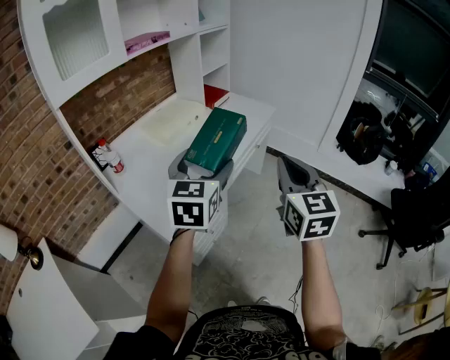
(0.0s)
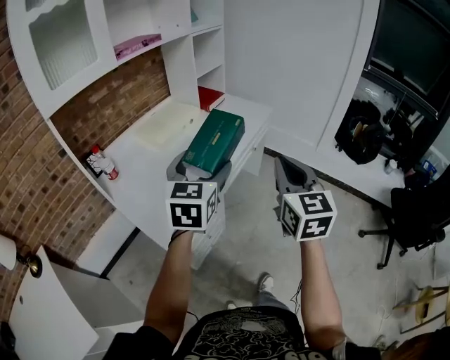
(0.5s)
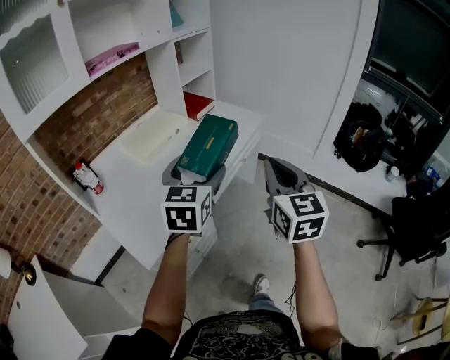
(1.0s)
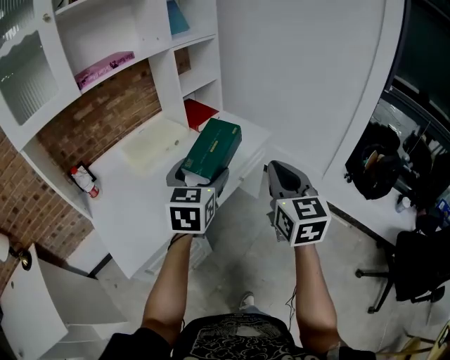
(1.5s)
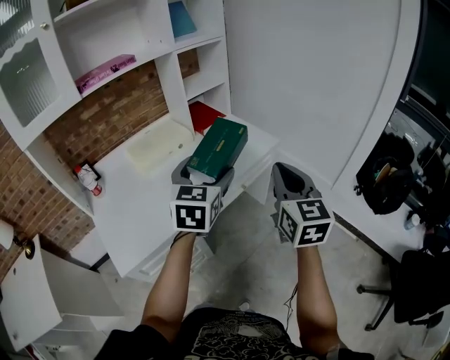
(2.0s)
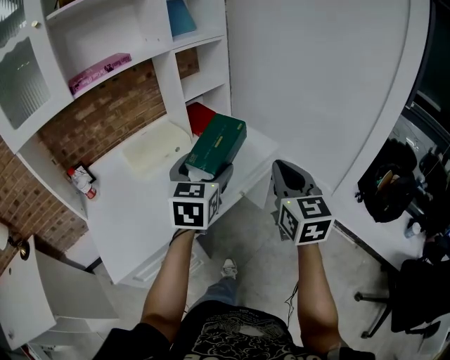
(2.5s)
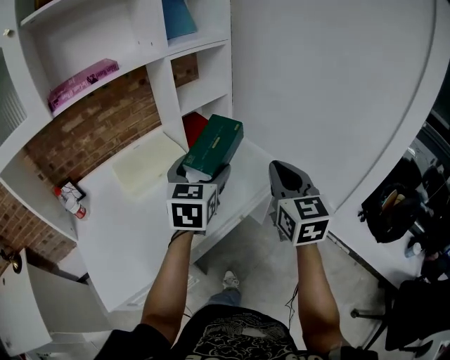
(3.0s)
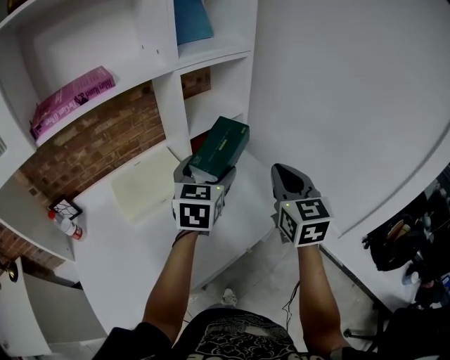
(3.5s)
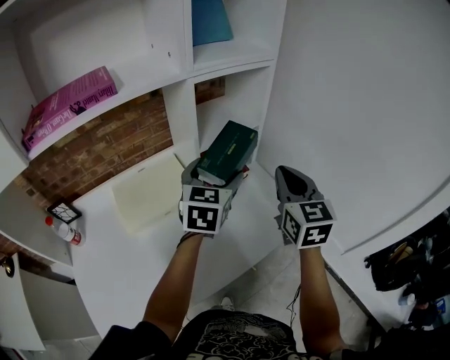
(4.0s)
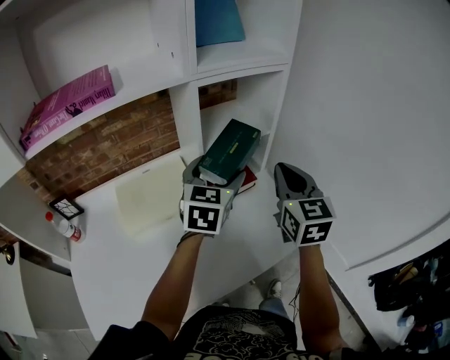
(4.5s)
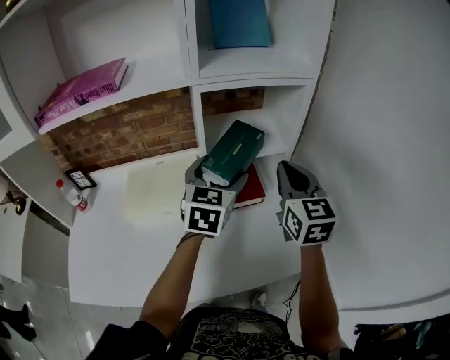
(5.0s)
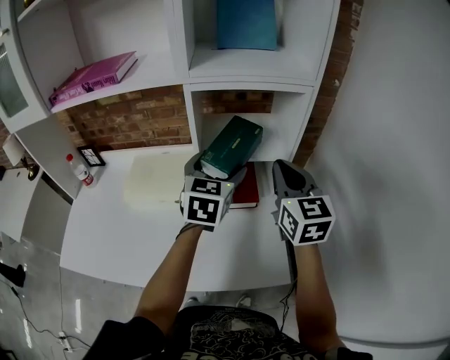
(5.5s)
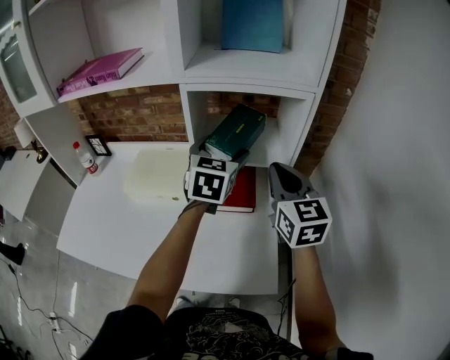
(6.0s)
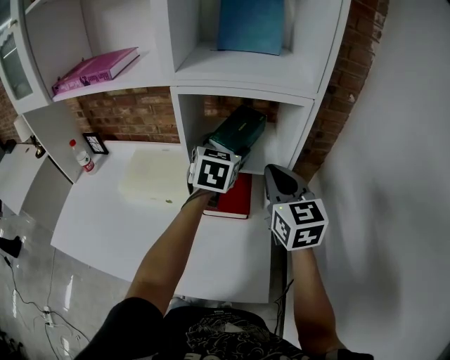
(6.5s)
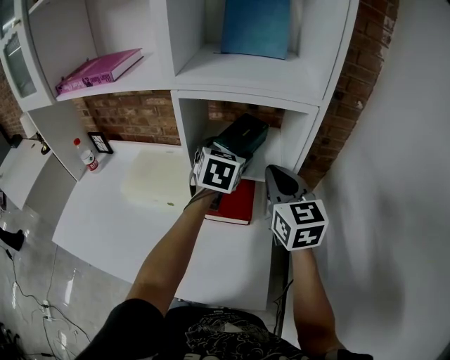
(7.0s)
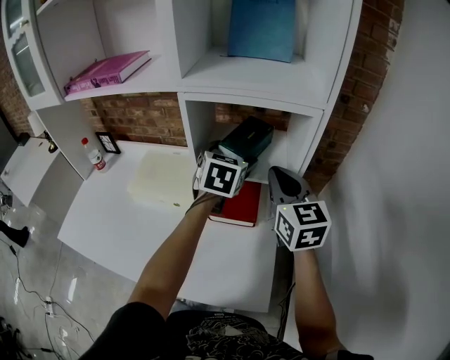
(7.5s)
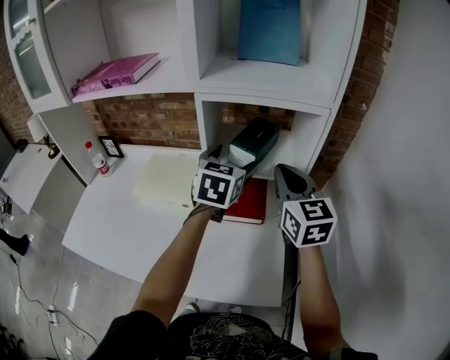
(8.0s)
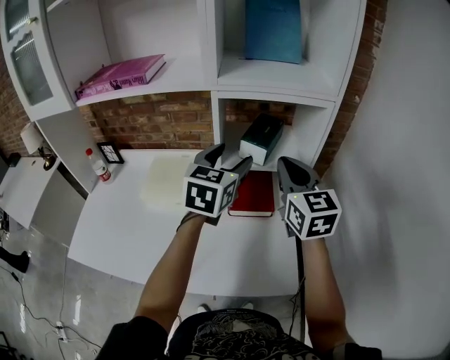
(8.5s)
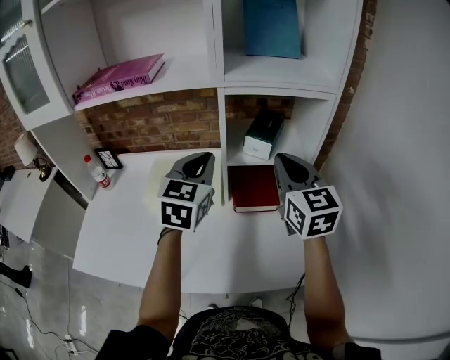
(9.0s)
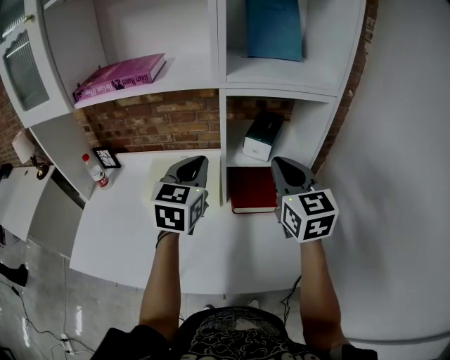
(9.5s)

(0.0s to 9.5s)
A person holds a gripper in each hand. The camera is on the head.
0.0s - 2.0s: Both grippers travel together forward and to the right, some 30 cm.
2.0s - 4.0s: The two grippers travel together, forward, approximately 40 cm.
4.0s - 5.5s: The left gripper moves some 10 cm, and rotates about 30 degrees; the right gripper shifts by roughly 15 cm, and rotates roughly 30 degrees.
5.5s - 7.5s: The right gripper is displaced forward by roughly 5 cm; the left gripper goes approximately 10 cm forward.
7.5s - 9.5s: The left gripper travels to the left and backward by approximately 20 cm, and closes up; the right gripper shifts some 10 cm to the left and backward.

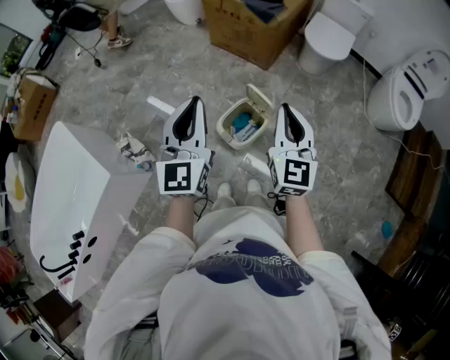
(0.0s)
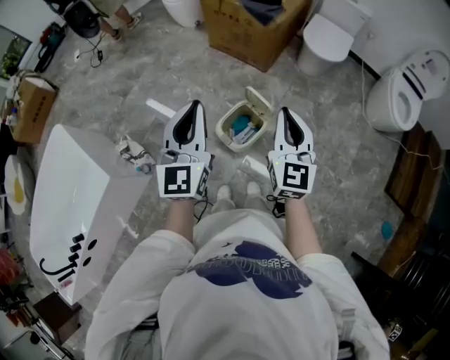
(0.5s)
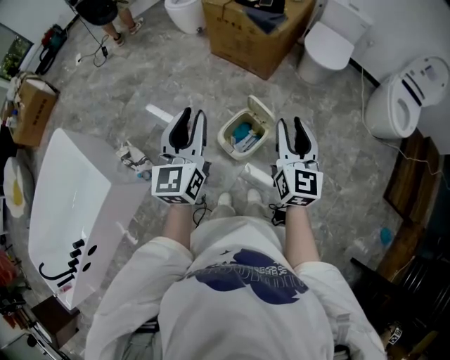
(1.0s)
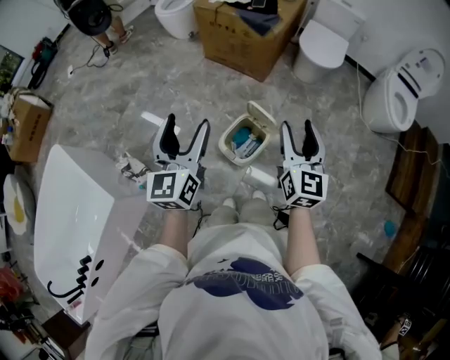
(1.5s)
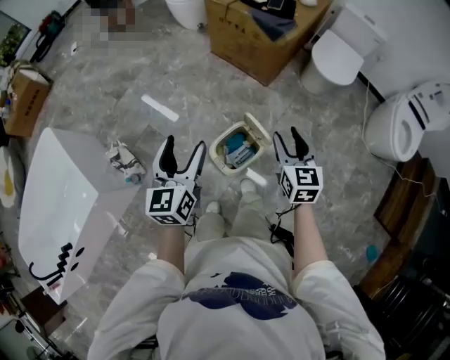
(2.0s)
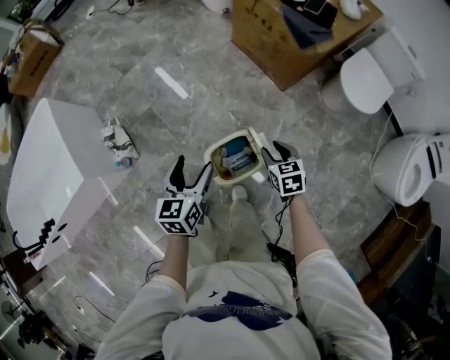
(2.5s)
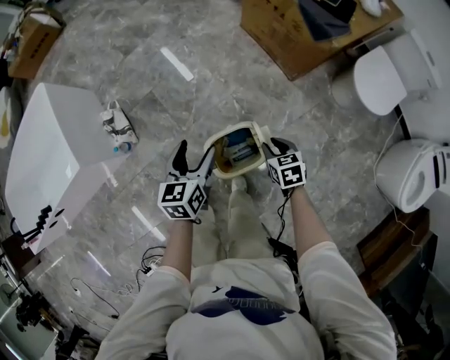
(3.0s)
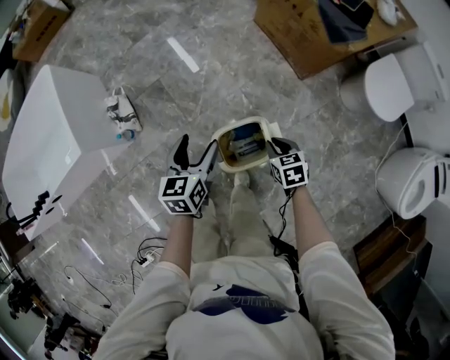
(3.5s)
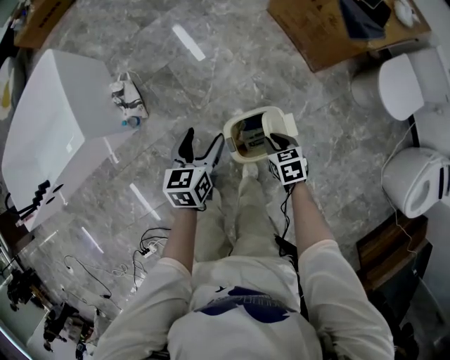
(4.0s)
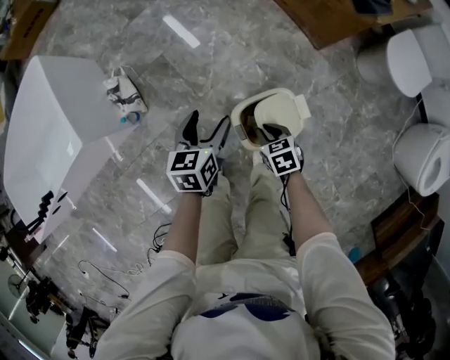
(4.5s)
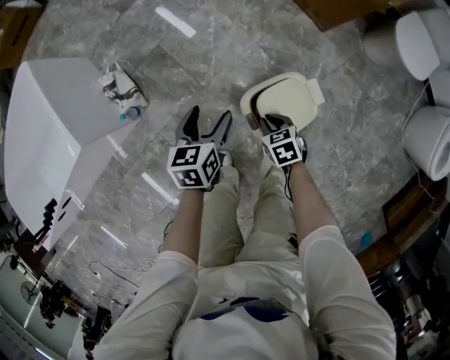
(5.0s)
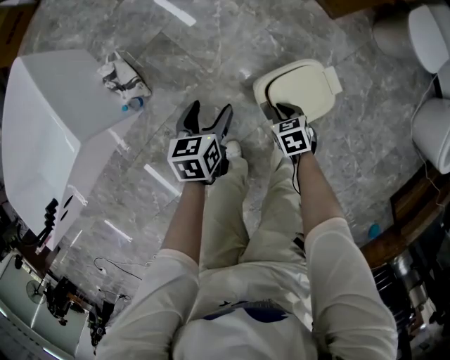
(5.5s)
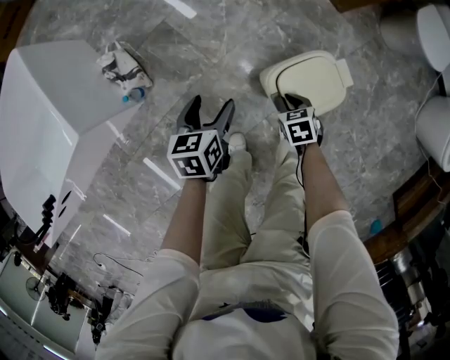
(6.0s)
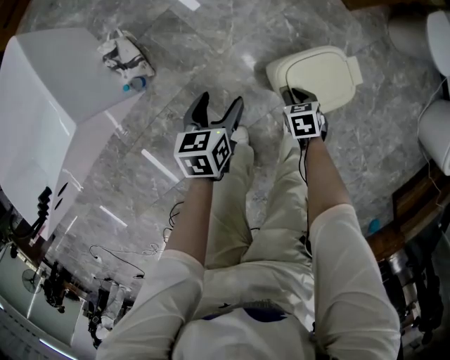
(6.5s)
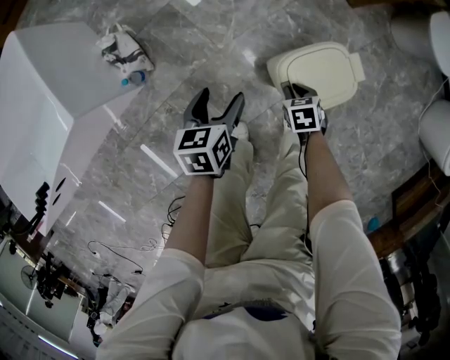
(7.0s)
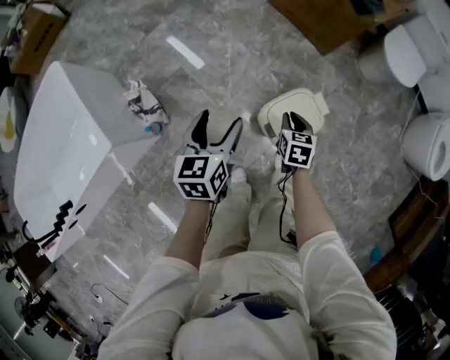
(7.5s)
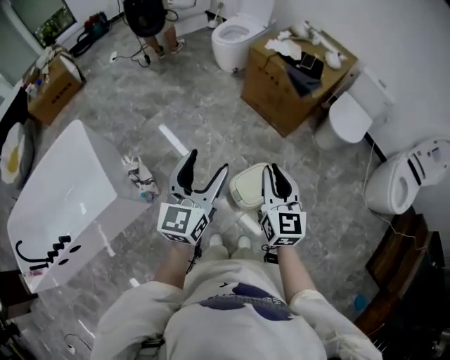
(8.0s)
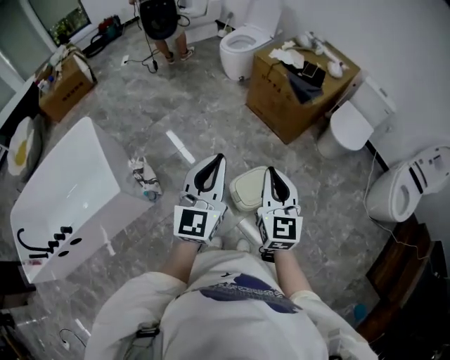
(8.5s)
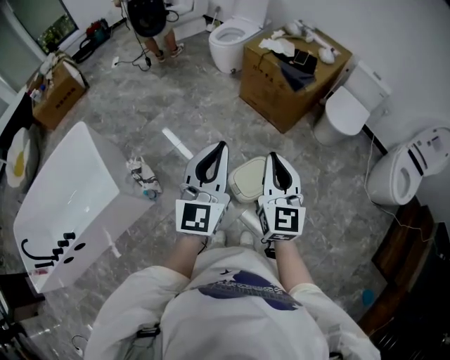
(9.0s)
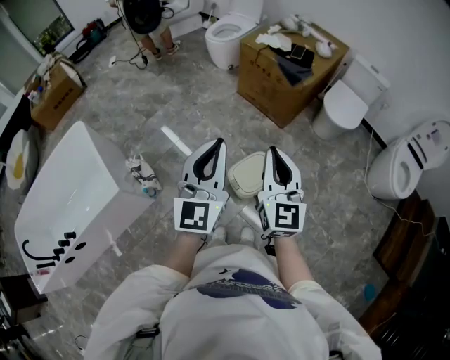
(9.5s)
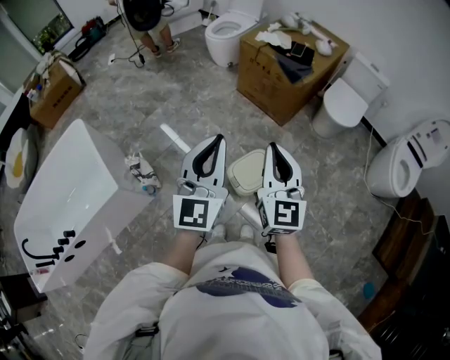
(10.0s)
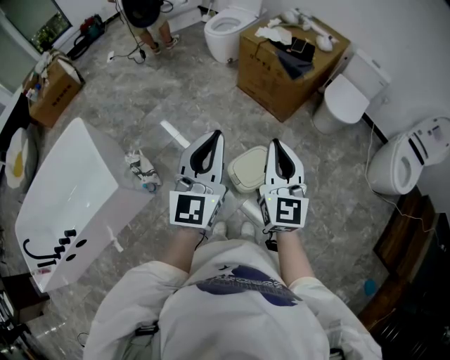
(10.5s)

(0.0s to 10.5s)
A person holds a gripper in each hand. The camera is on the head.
0.0s - 2.0s: The right gripper goes roughly 15 cm forward and downward, turns by some 20 degrees, and opens up. Meanwhile the left gripper shifts roughly 15 cm downward and forward, rotates some 30 degrees, and opens.
2.0s - 4.0s: The grippers both shift downward by approximately 25 cm. The left gripper rotates approximately 30 degrees. The right gripper tilts its fingers about 30 degrees downward, and closes up.
4.0s - 6.5s: Both grippers move downward and to the left, roughly 25 cm.
6.5s - 8.5s: The two grippers go about 60 cm upward. The left gripper points its fingers some 50 degrees further upward, and closes up, while the right gripper tips its fingers upward by about 70 degrees.
8.5s - 10.5s: The grippers make only small movements.

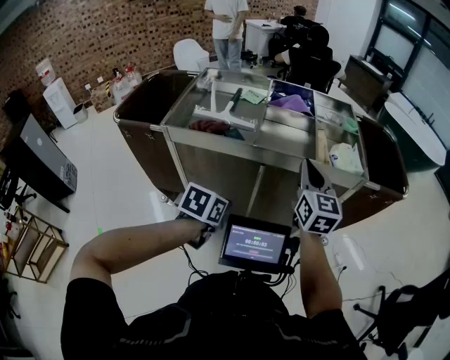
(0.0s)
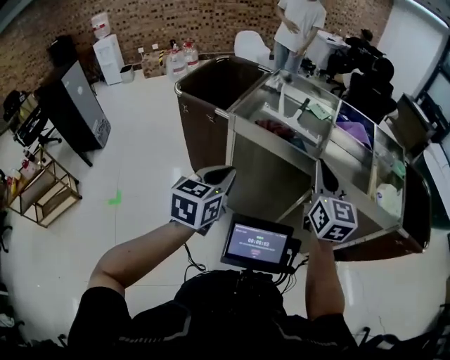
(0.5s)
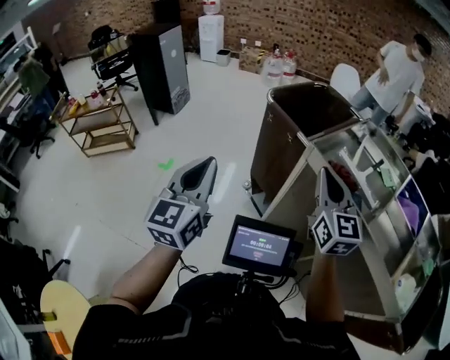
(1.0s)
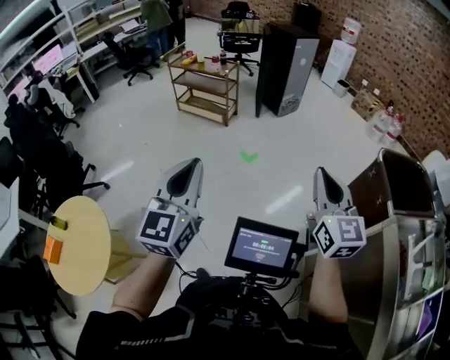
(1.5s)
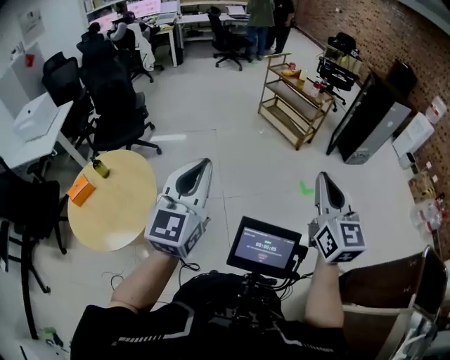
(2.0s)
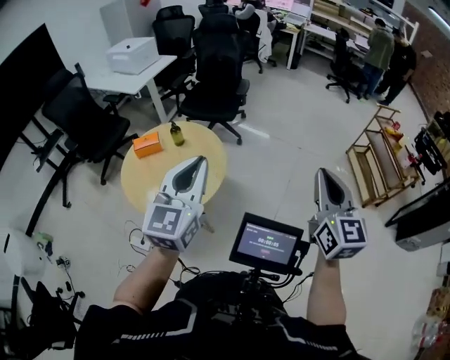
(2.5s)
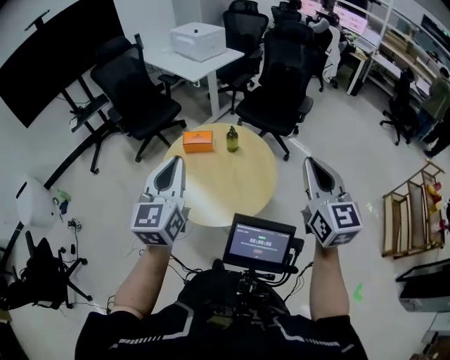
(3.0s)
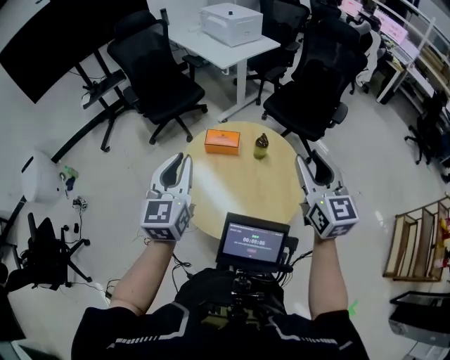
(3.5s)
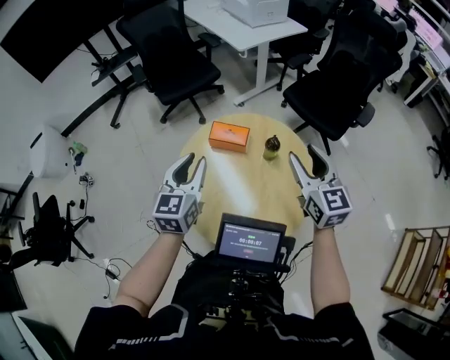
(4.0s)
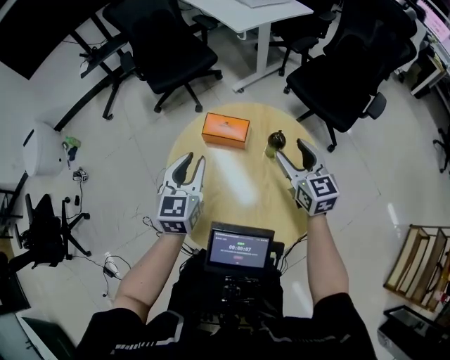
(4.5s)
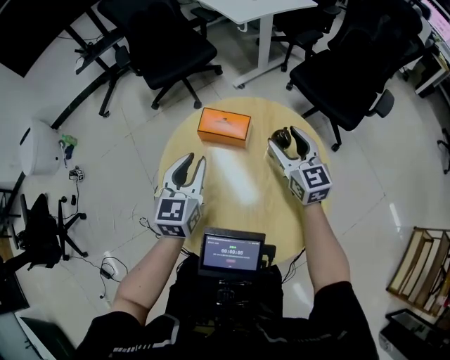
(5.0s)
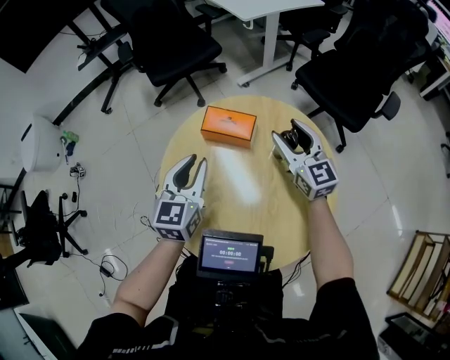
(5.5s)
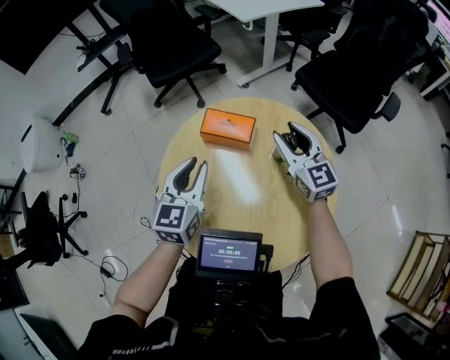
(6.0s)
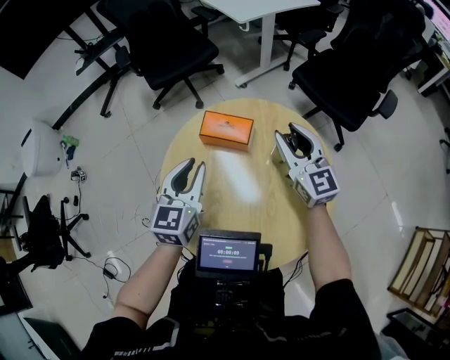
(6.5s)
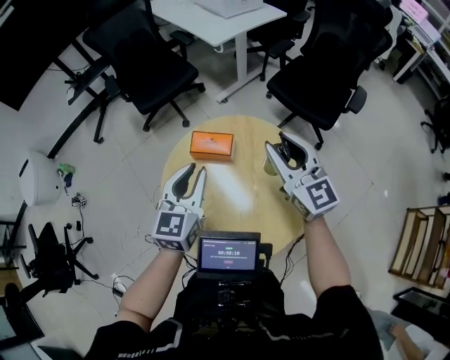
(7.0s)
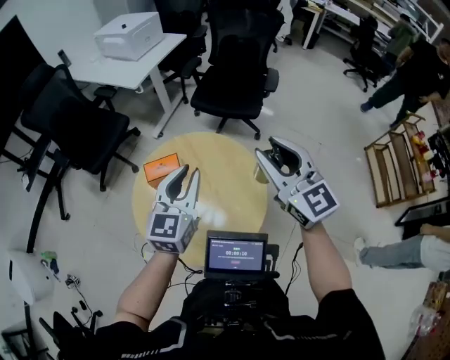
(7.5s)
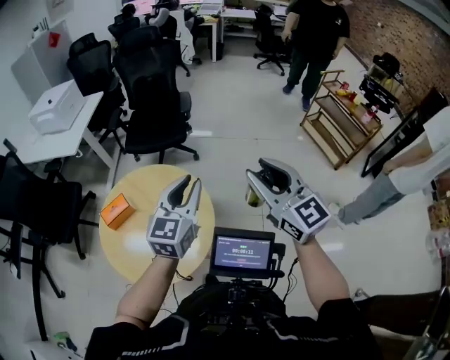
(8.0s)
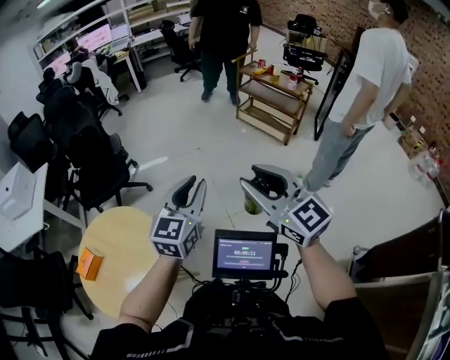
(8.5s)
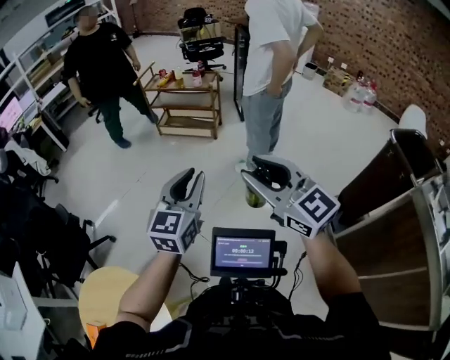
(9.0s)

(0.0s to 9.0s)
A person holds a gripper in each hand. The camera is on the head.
0.0s - 2.0s: Both grippers are carried some 1 m. The left gripper points its fingers roughly 50 degrees further upward. The right gripper changes its angle by roughly 120 degrees.
2.0s - 4.5s: The two grippers travel together, some 1 m. The left gripper changes its angle by approximately 80 degrees, and opens. Meanwhile the right gripper rotates some 80 degrees, and opens its fingers.
4.5s - 7.0s: The right gripper goes about 15 cm upward, and closes its fingers; the left gripper shifts about 10 cm upward and to the right.
7.0s - 9.0s: The pair of grippers is taken roughly 1 m. The right gripper swivels approximately 90 degrees. The left gripper turns by approximately 110 degrees.
